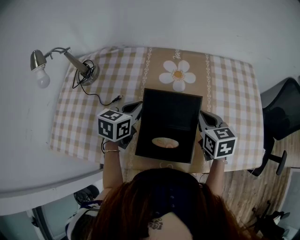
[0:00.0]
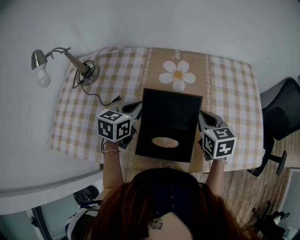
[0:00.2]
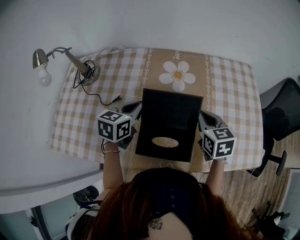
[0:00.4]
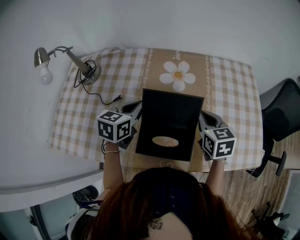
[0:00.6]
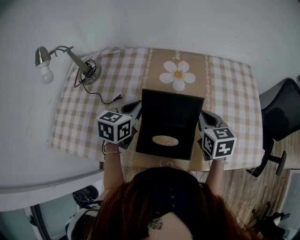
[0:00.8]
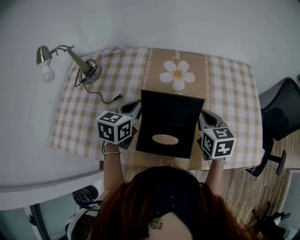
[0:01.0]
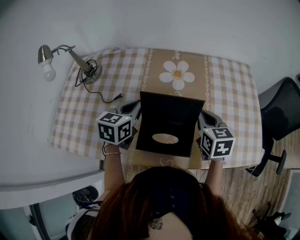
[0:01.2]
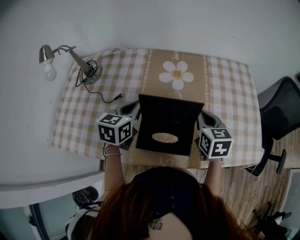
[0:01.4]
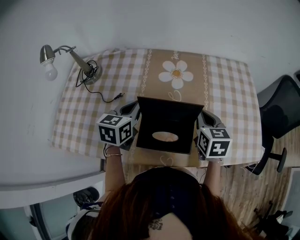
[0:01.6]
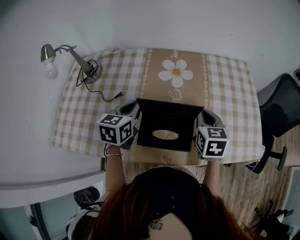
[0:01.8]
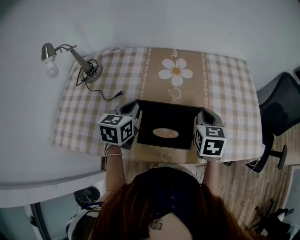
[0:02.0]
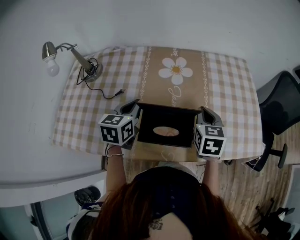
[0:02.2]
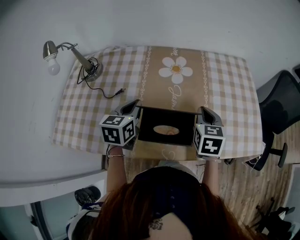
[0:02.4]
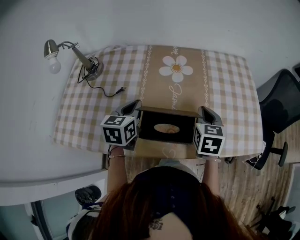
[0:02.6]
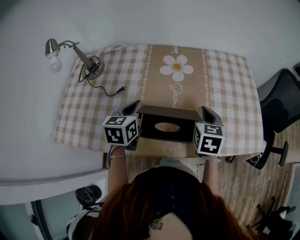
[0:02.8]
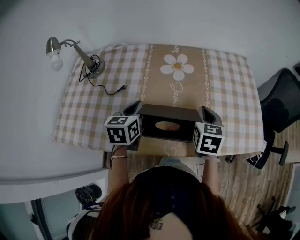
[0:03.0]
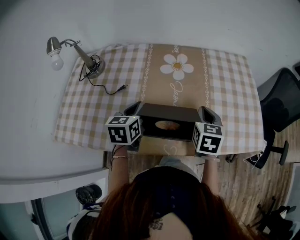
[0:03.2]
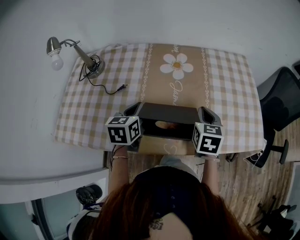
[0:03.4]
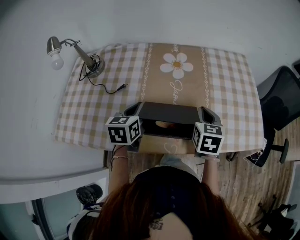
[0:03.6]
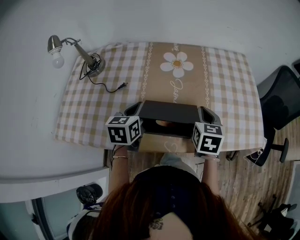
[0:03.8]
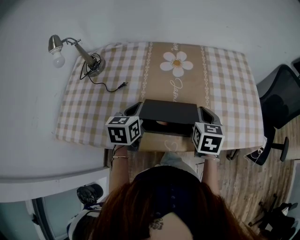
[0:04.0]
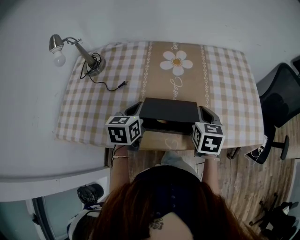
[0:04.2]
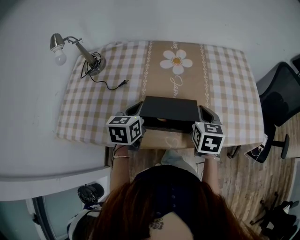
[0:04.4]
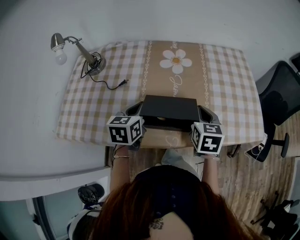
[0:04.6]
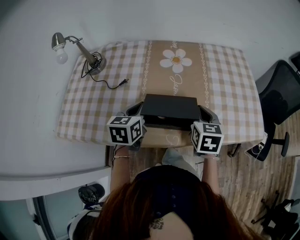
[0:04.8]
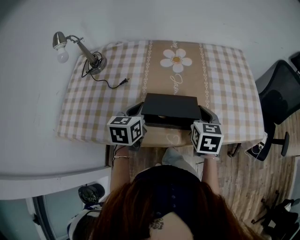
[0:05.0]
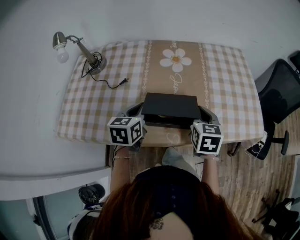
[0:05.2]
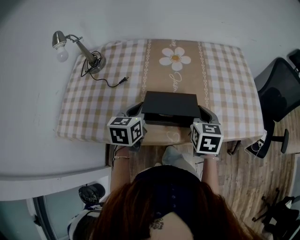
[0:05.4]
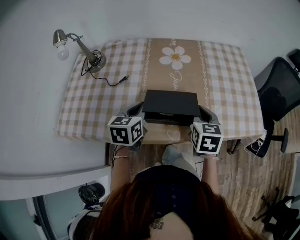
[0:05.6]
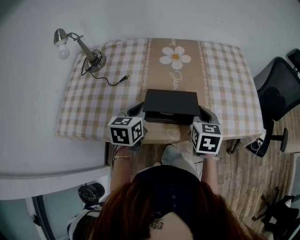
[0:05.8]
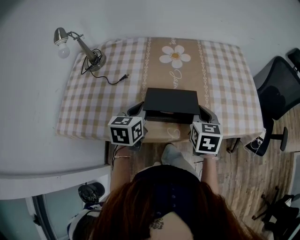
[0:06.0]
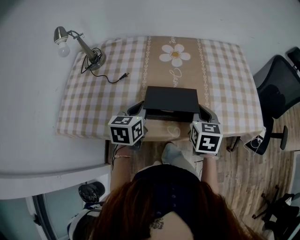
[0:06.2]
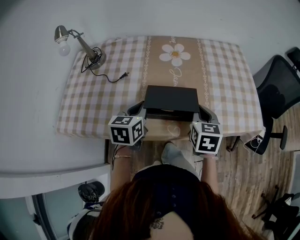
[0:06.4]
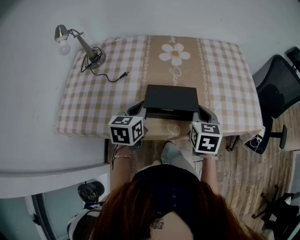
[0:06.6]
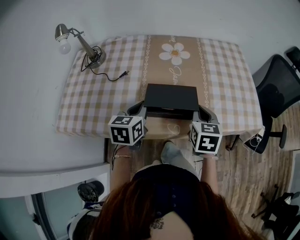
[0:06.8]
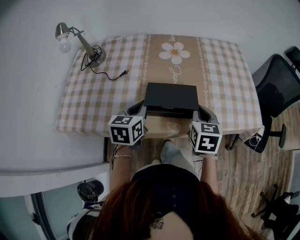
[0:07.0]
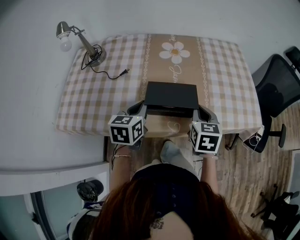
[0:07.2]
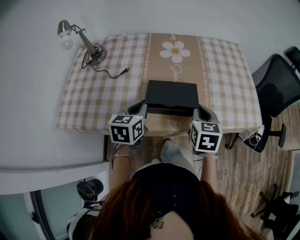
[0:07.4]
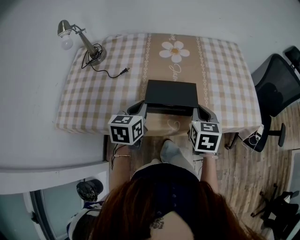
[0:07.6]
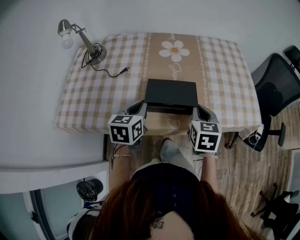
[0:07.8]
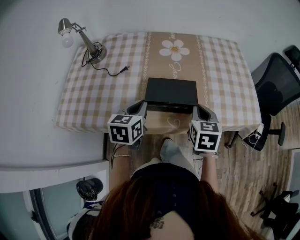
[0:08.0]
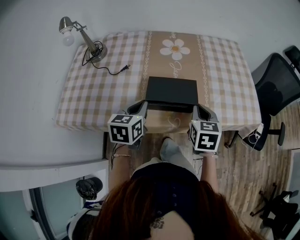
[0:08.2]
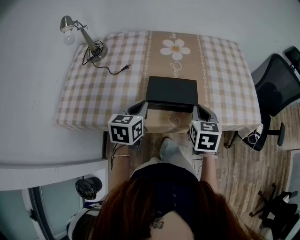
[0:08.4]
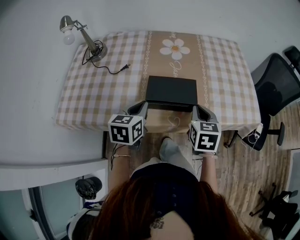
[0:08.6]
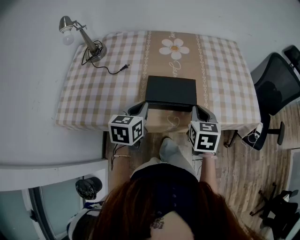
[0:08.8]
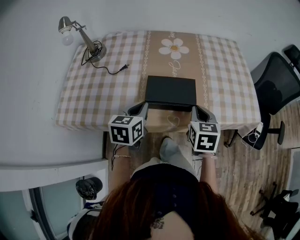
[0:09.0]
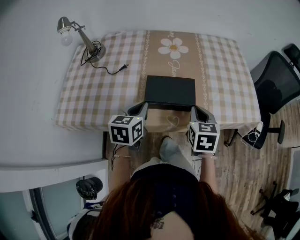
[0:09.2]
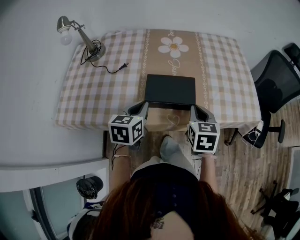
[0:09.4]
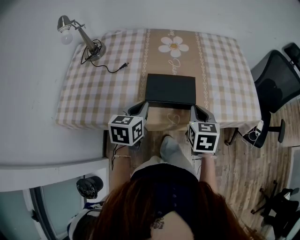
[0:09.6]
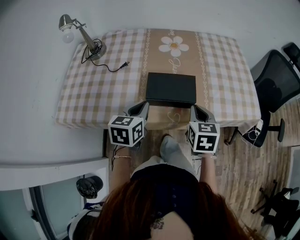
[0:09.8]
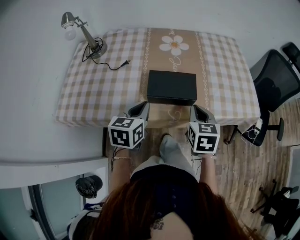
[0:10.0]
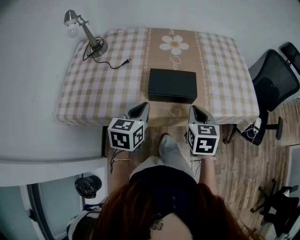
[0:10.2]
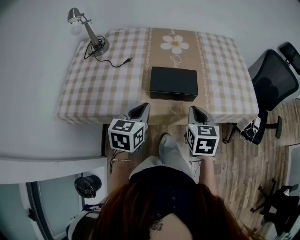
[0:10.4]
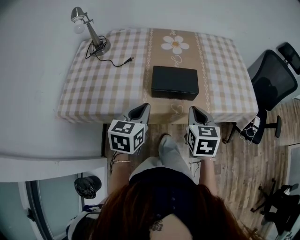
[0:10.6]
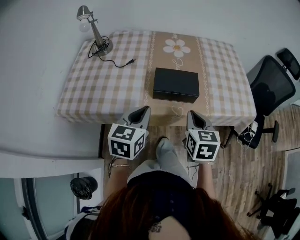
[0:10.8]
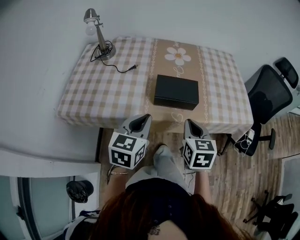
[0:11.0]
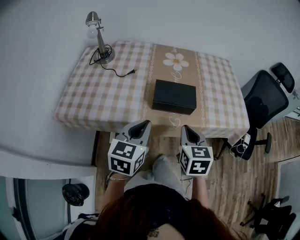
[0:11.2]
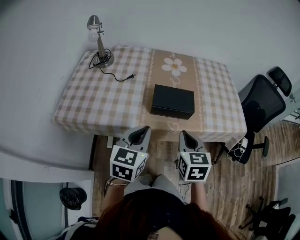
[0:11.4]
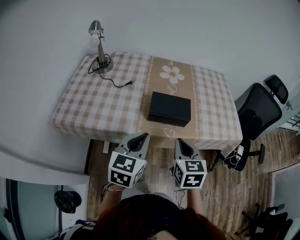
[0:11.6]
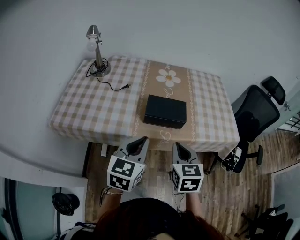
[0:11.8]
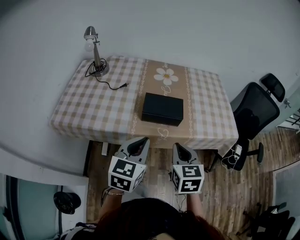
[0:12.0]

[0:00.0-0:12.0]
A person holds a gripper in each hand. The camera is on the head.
0:00.0 to 0:01.6: There are only small adjustments of the grippers.
0:01.6 to 0:03.0: The grippers make only small movements.
0:03.0 to 0:04.4: The grippers stay close to where they were, moving slightly.
0:04.4 to 0:06.0: There are only small adjustments of the grippers.
0:06.0 to 0:09.0: The grippers move only a little.
0:09.0 to 0:10.4: Both grippers move backward, about 5 cm.
0:10.4 to 0:12.0: The left gripper is displaced backward and upward by approximately 10 cm, while the right gripper heads backward, covering approximately 10 cm.

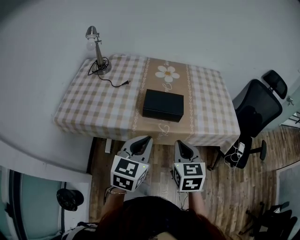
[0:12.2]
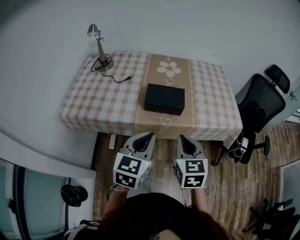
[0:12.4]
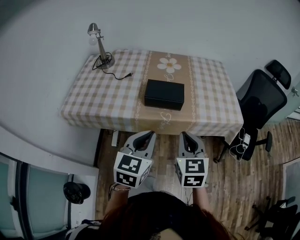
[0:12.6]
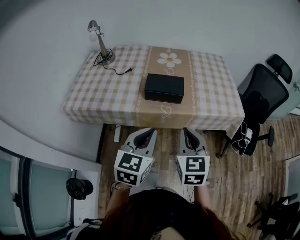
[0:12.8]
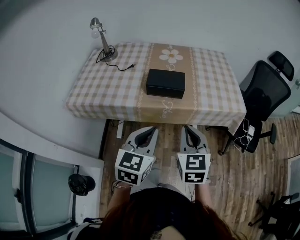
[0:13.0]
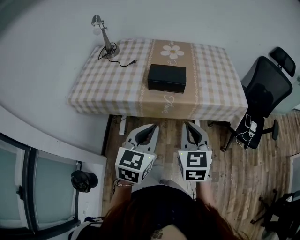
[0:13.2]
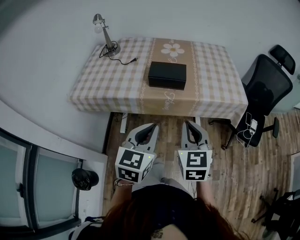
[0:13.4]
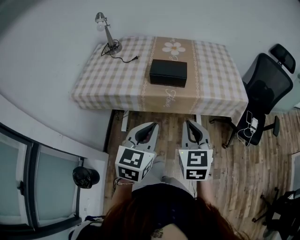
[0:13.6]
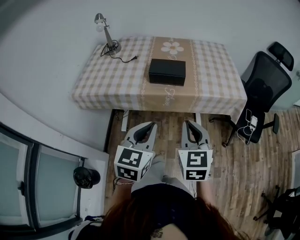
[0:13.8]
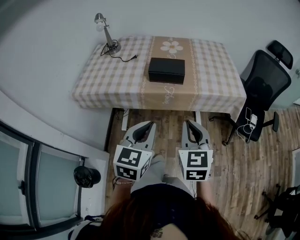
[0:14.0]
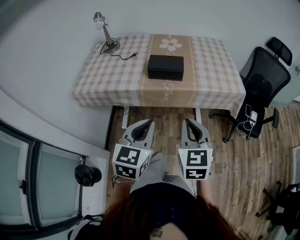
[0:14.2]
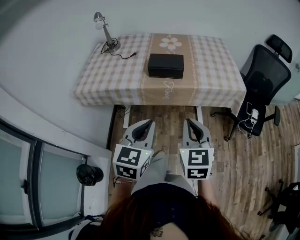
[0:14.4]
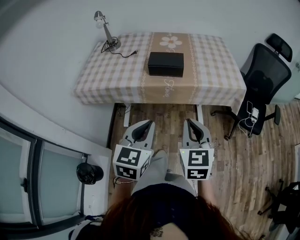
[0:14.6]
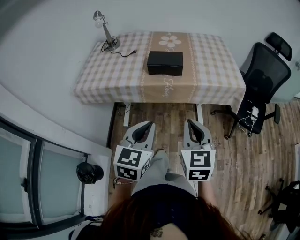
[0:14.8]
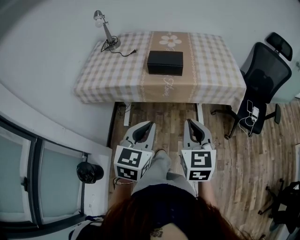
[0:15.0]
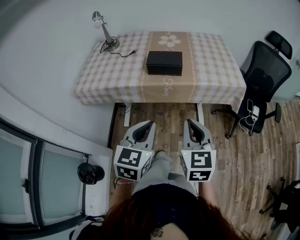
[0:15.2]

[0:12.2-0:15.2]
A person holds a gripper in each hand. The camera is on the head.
0:12.2 to 0:13.8: The two grippers go approximately 15 cm backward.
0:13.8 to 0:15.2: The right gripper travels backward by approximately 5 cm.

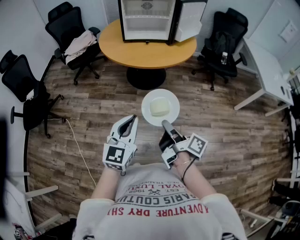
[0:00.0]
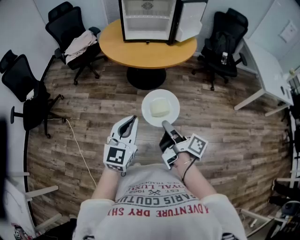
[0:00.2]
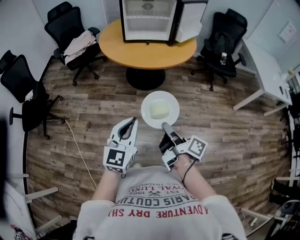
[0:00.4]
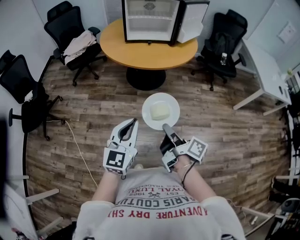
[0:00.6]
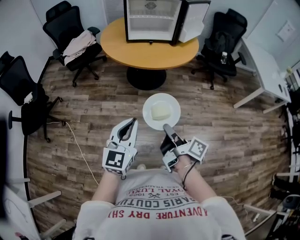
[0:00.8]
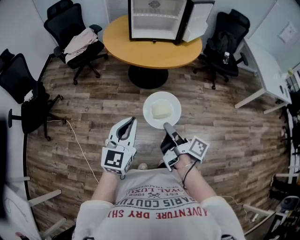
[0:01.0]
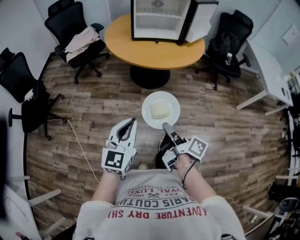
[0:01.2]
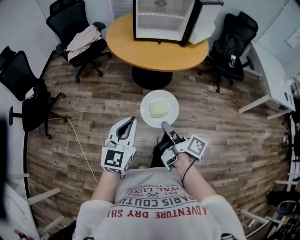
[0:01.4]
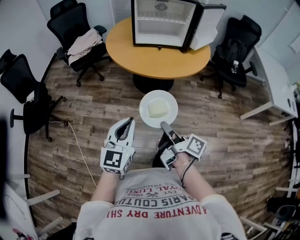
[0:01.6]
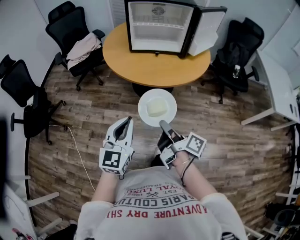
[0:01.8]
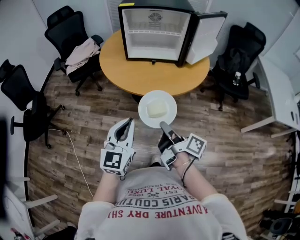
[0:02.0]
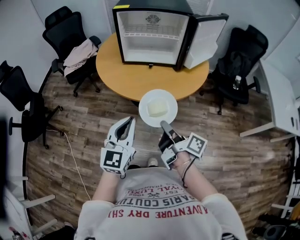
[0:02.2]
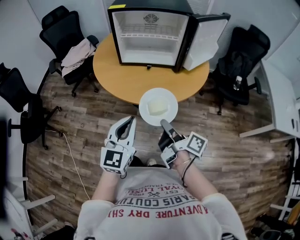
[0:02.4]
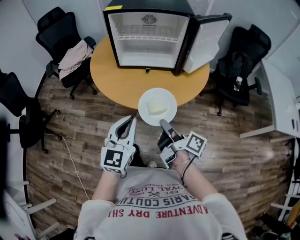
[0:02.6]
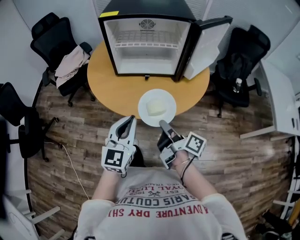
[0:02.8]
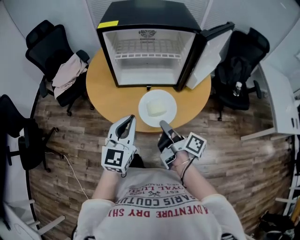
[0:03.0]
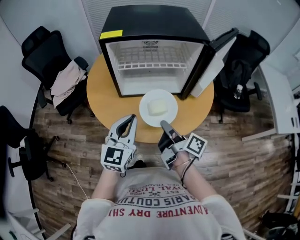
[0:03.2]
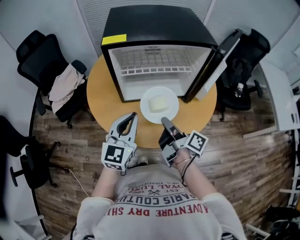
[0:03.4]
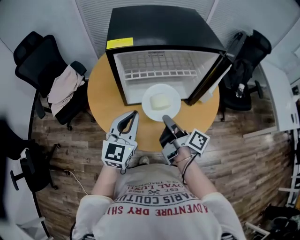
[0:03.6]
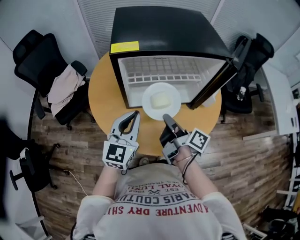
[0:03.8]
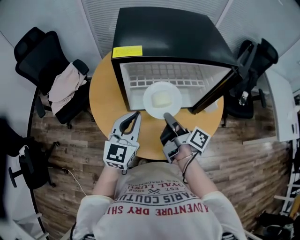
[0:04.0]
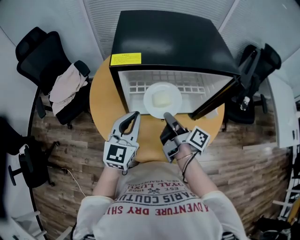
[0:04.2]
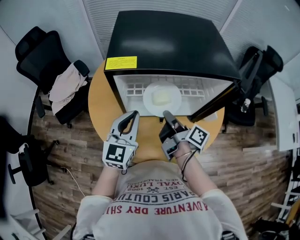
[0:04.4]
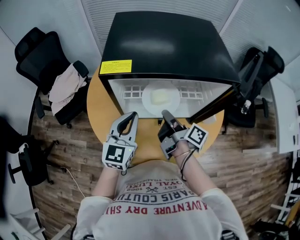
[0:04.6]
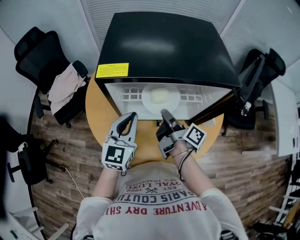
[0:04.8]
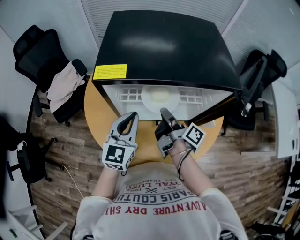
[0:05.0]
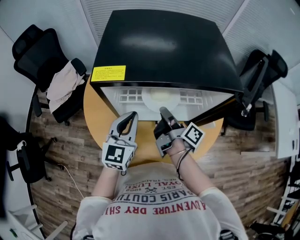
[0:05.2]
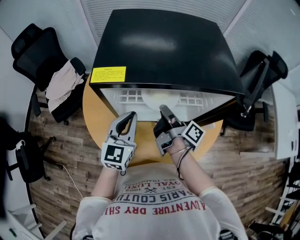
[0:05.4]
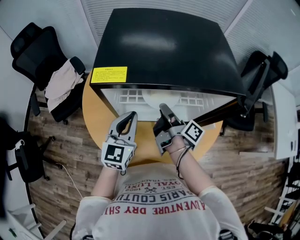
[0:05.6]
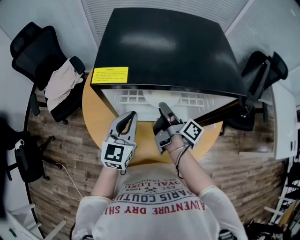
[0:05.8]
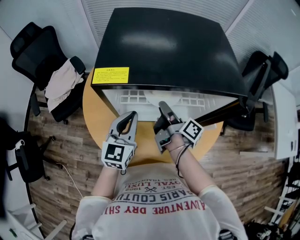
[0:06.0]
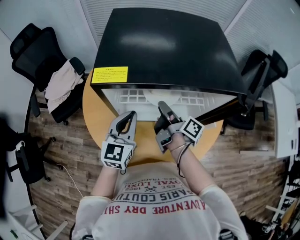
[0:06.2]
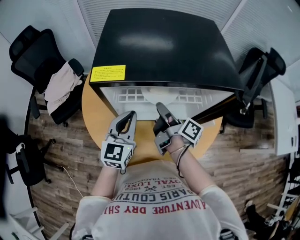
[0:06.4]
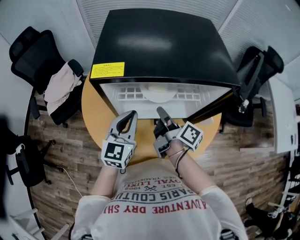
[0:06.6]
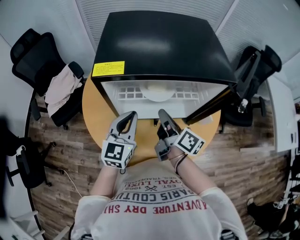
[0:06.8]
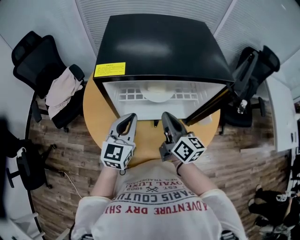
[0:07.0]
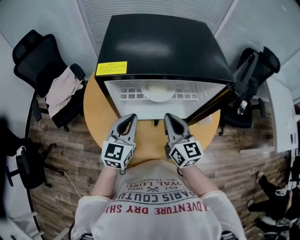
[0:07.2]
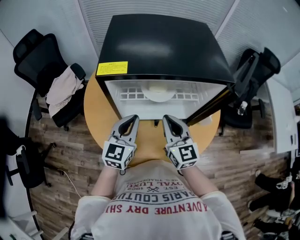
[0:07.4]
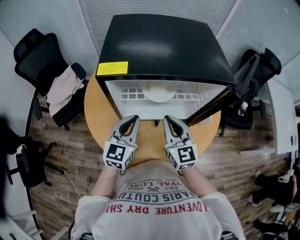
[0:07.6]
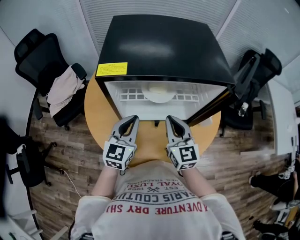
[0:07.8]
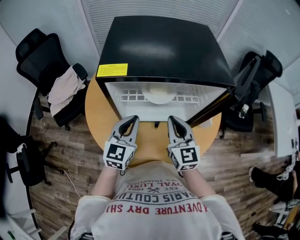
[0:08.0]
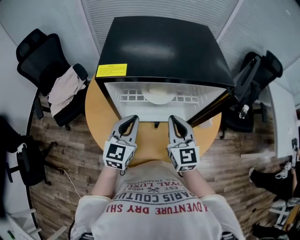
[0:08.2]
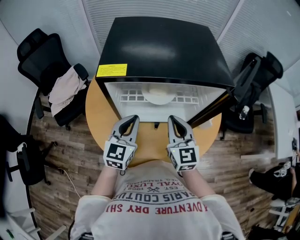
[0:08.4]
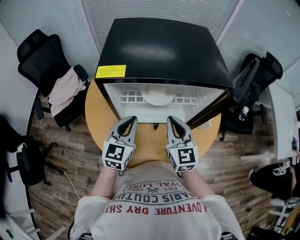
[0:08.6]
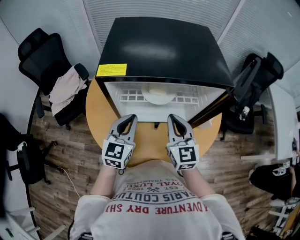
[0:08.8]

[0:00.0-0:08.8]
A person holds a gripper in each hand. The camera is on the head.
0:00.0 to 0:01.4: The left gripper changes place by roughly 10 cm.
0:01.4 to 0:03.0: The left gripper ends up roughly 40 cm from where it was.
0:03.0 to 0:04.4: The left gripper shifts by some 25 cm.
0:04.4 to 0:05.8: The left gripper moves approximately 5 cm.
